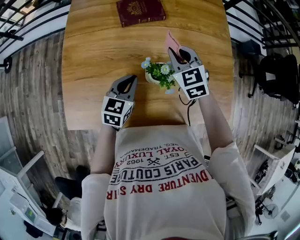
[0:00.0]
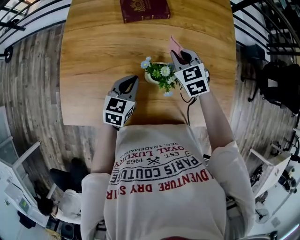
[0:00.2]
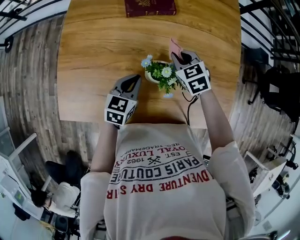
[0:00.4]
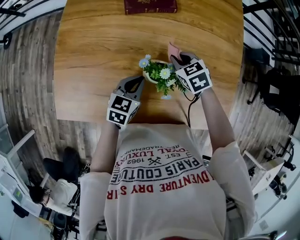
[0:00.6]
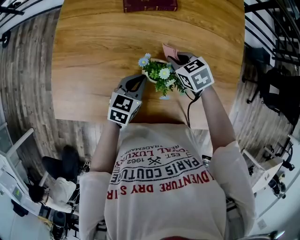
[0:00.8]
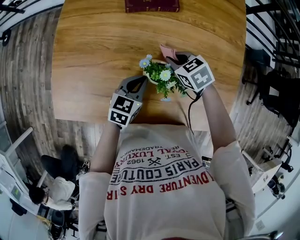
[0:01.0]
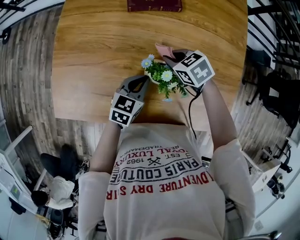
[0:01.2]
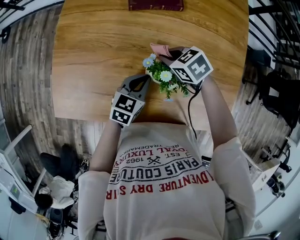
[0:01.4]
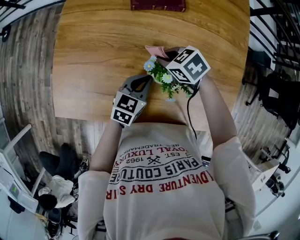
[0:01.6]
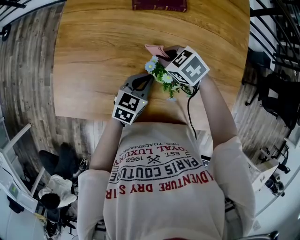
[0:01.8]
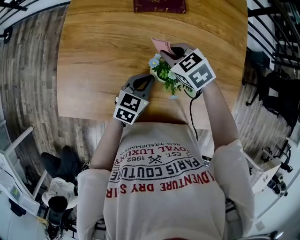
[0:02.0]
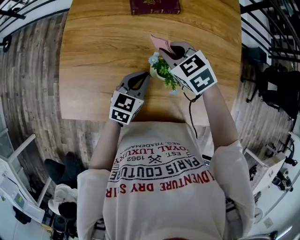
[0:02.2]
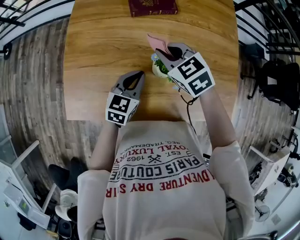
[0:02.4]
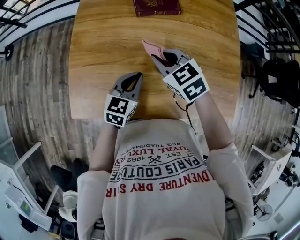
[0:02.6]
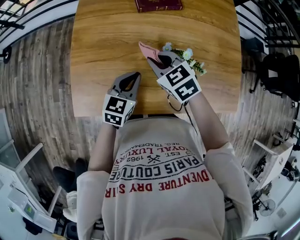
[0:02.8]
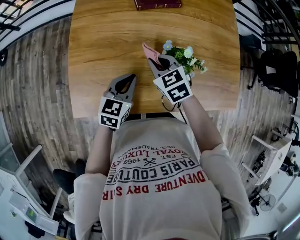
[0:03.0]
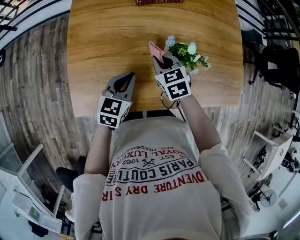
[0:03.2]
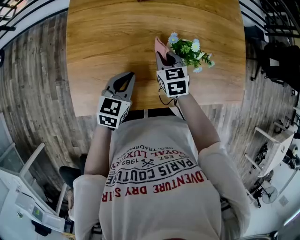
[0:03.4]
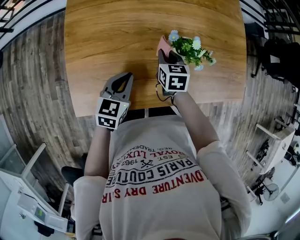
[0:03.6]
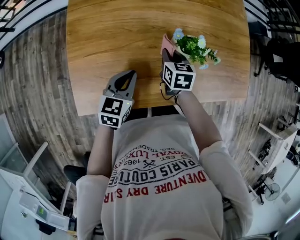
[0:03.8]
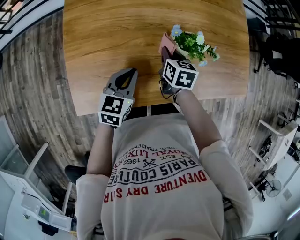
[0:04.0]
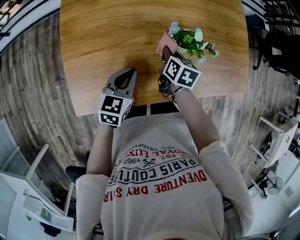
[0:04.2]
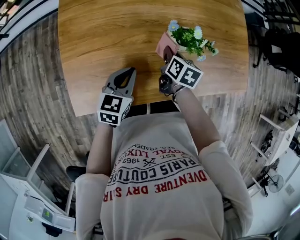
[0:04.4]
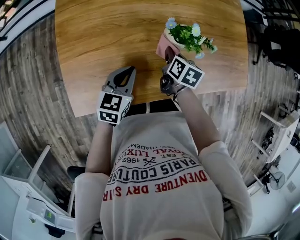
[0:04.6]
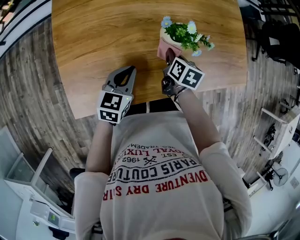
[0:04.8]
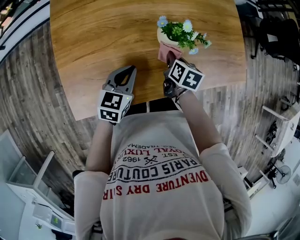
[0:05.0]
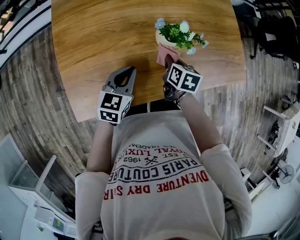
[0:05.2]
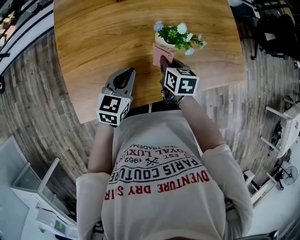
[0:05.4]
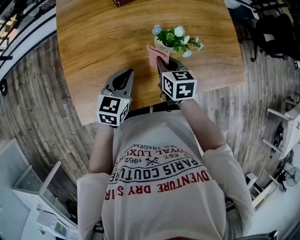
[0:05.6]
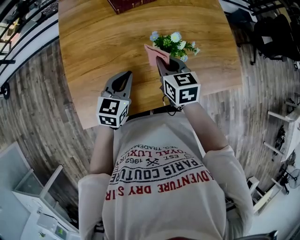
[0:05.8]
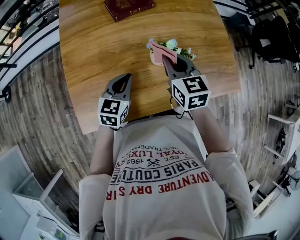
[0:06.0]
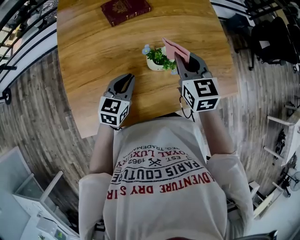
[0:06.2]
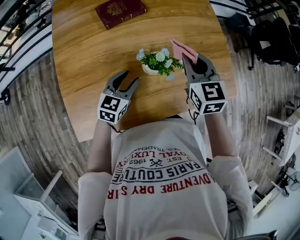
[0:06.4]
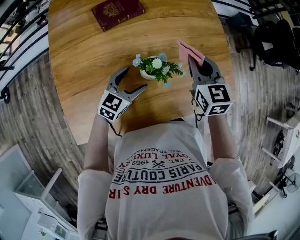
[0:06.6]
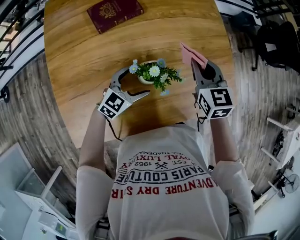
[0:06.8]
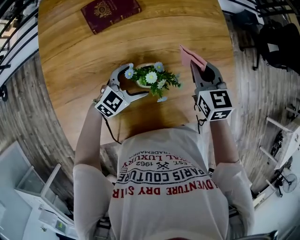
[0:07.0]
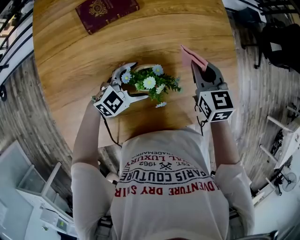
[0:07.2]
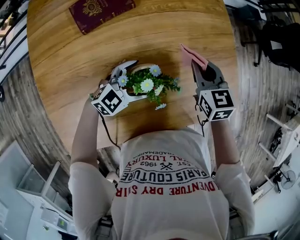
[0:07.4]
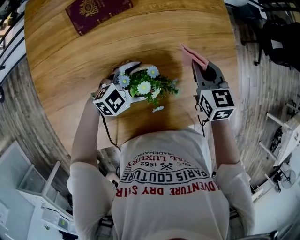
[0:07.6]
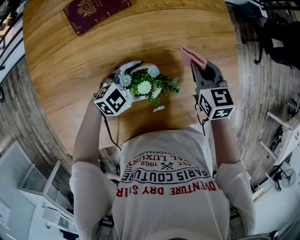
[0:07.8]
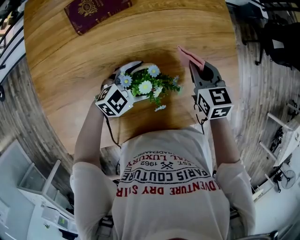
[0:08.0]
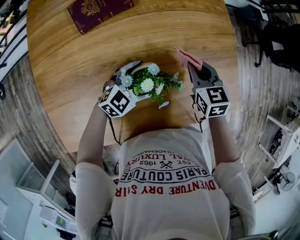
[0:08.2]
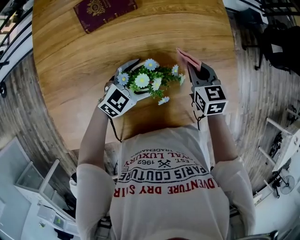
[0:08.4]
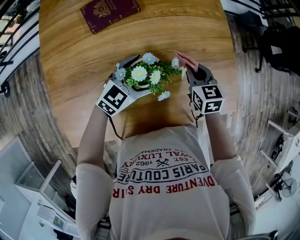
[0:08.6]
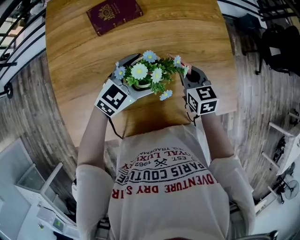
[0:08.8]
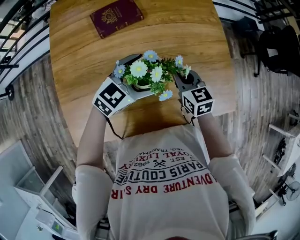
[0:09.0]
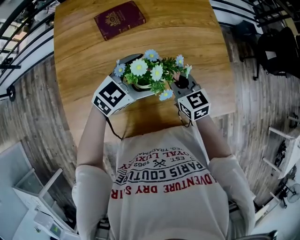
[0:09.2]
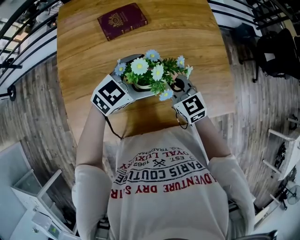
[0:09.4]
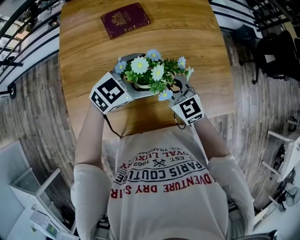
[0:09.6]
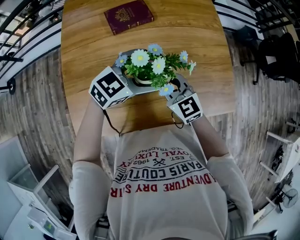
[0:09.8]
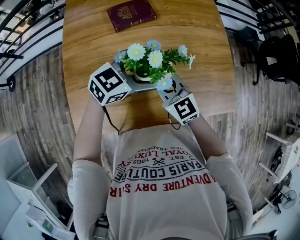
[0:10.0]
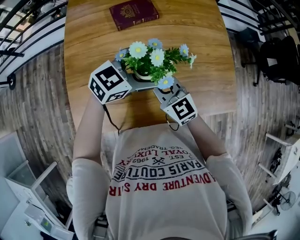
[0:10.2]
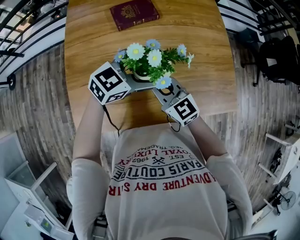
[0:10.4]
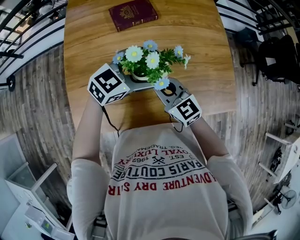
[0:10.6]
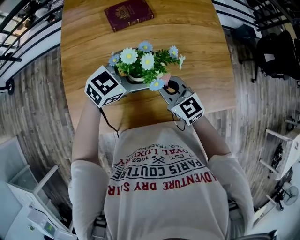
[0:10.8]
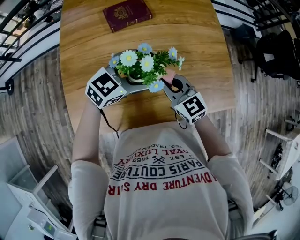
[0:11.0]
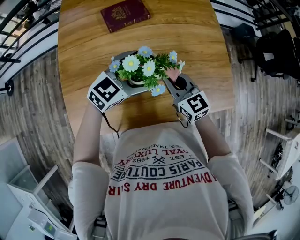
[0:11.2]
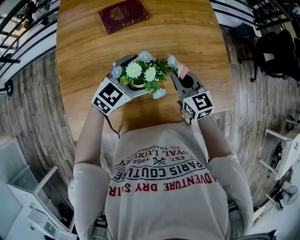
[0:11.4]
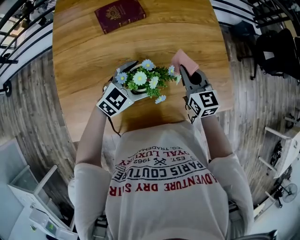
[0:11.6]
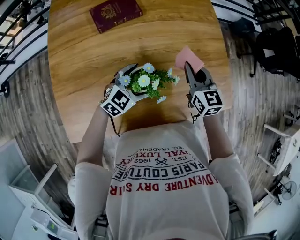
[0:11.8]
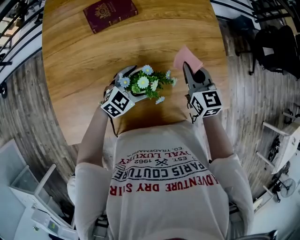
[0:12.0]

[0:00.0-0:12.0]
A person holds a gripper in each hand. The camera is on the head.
0:00.0 to 0:01.6: The right gripper moves downward, about 10 cm, and changes its angle by approximately 50 degrees, while the left gripper is displaced downward by approximately 5 cm.
0:01.6 to 0:03.0: The left gripper moves to the left, roughly 15 cm; the right gripper moves to the left, upward and backward, about 15 cm, and turns by about 30 degrees.
0:03.0 to 0:04.4: The right gripper heads downward and to the right, covering some 15 cm, and twists some 60 degrees clockwise, seen from behind.
0:04.4 to 0:06.0: The left gripper moves about 5 cm. Meanwhile the right gripper shifts about 20 cm upward, and changes its angle by roughly 40 degrees.
0:06.0 to 0:07.6: The right gripper shifts about 25 cm forward, to the right and downward. Meanwhile the left gripper travels to the right, forward and downward by roughly 20 cm, rotates roughly 50 degrees, and opens its fingers.
0:07.6 to 0:09.0: The right gripper is displaced backward and to the left by roughly 10 cm; the left gripper is displaced upward by some 15 cm.
0:09.0 to 0:10.4: The left gripper goes approximately 5 cm upward. Meanwhile the right gripper travels to the left, backward and upward by approximately 20 cm, and swivels approximately 30 degrees.
0:10.4 to 0:12.0: The right gripper is displaced to the right and forward by approximately 25 cm, and rotates about 30 degrees; the left gripper travels downward by roughly 15 cm.

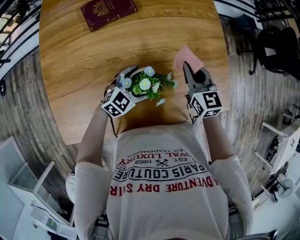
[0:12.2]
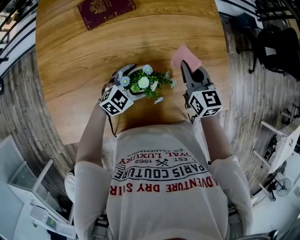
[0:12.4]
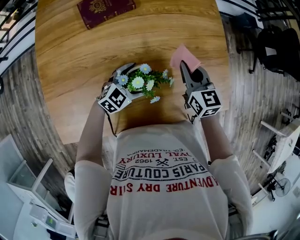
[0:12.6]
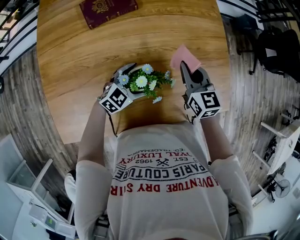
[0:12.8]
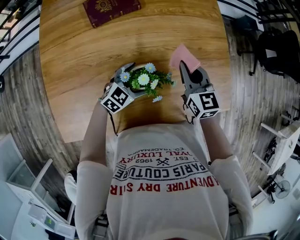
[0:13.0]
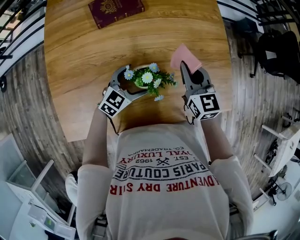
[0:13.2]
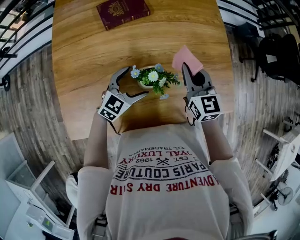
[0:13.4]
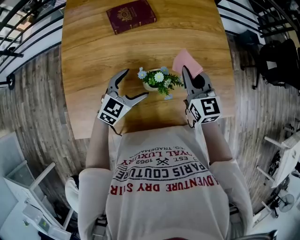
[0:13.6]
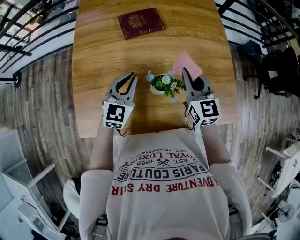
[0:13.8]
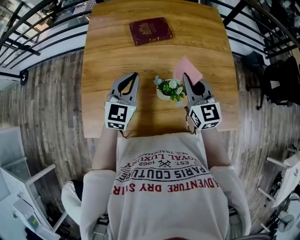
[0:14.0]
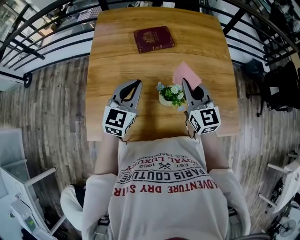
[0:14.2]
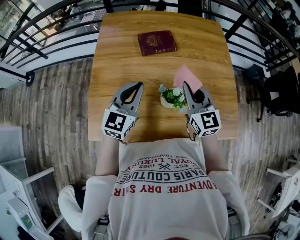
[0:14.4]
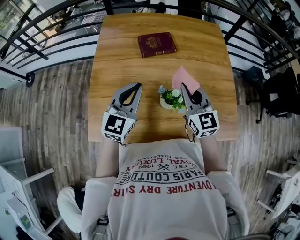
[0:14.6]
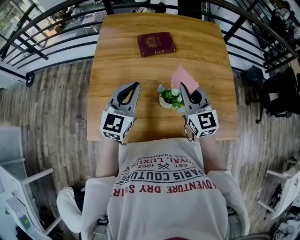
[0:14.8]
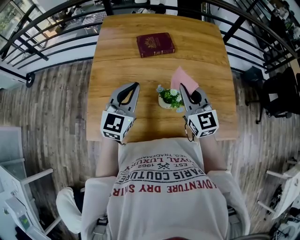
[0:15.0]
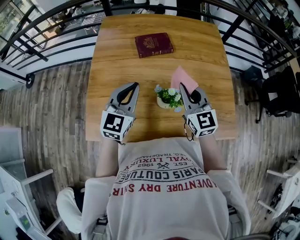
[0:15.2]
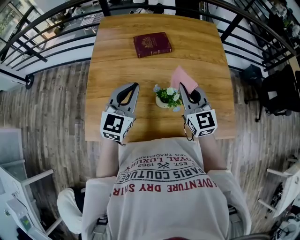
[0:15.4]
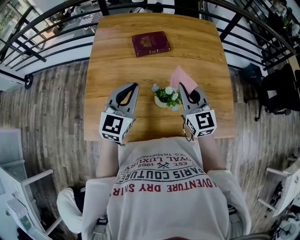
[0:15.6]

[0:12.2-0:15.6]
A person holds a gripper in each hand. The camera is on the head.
0:12.2 to 0:13.8: The right gripper heads to the left, upward and backward, covering roughly 15 cm; the left gripper shifts some 20 cm to the left and upward, swivels about 40 degrees, and closes.
0:13.8 to 0:15.6: The right gripper is displaced upward by roughly 5 cm, while the left gripper travels upward by about 10 cm.

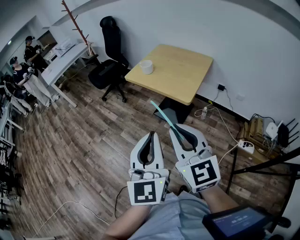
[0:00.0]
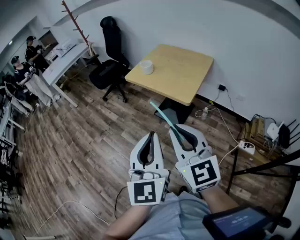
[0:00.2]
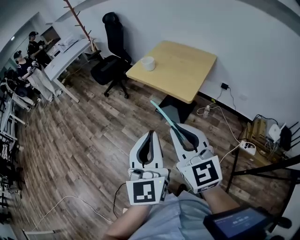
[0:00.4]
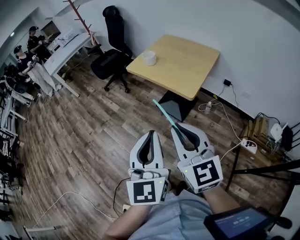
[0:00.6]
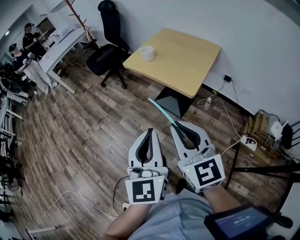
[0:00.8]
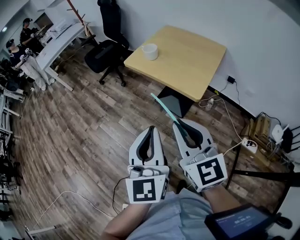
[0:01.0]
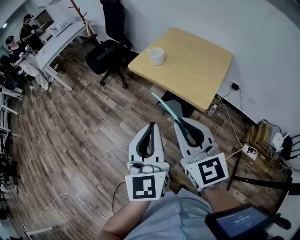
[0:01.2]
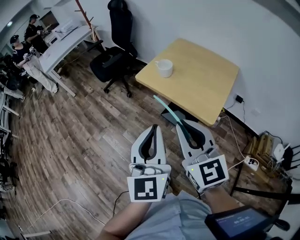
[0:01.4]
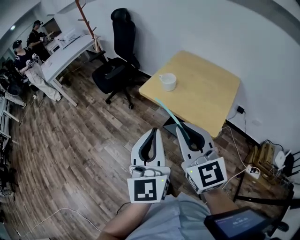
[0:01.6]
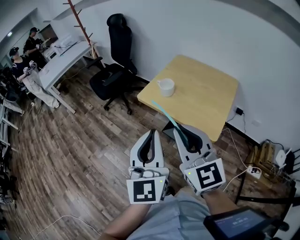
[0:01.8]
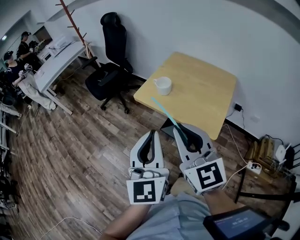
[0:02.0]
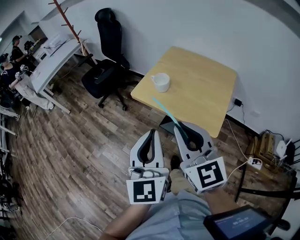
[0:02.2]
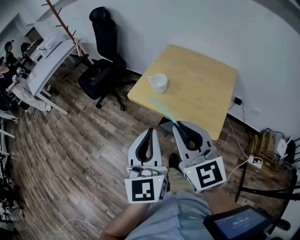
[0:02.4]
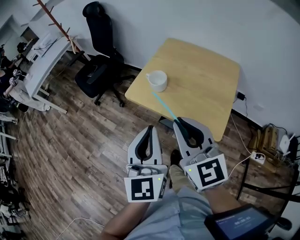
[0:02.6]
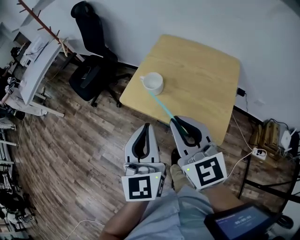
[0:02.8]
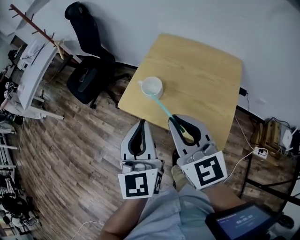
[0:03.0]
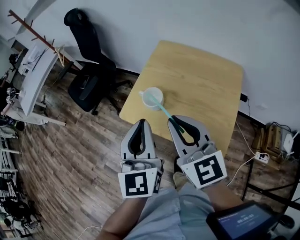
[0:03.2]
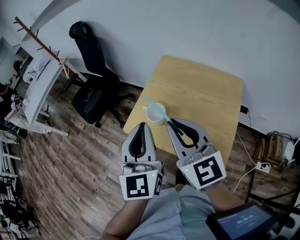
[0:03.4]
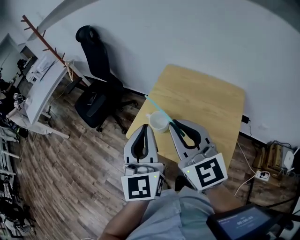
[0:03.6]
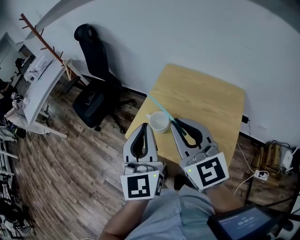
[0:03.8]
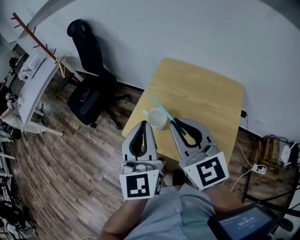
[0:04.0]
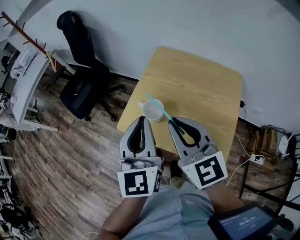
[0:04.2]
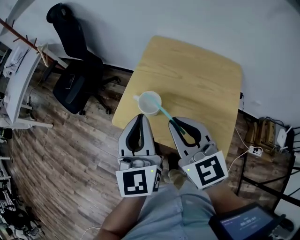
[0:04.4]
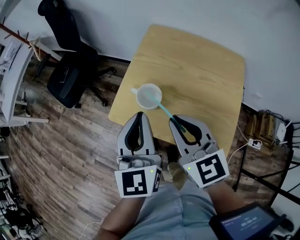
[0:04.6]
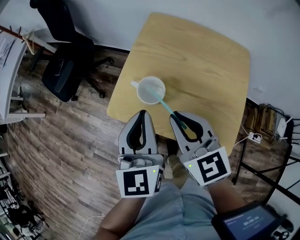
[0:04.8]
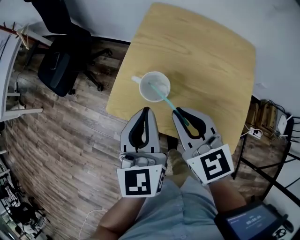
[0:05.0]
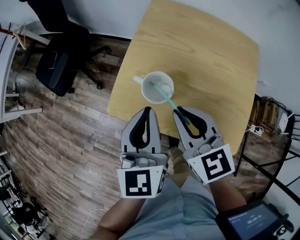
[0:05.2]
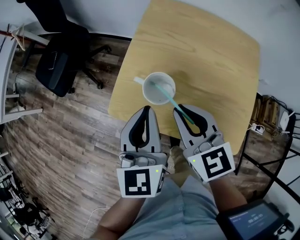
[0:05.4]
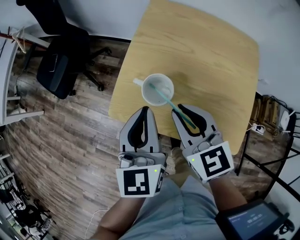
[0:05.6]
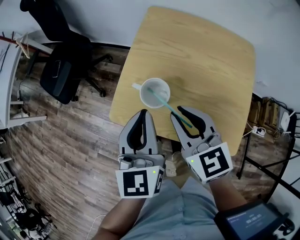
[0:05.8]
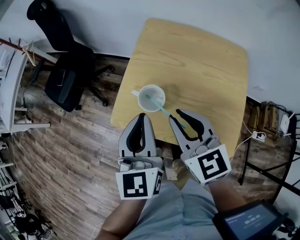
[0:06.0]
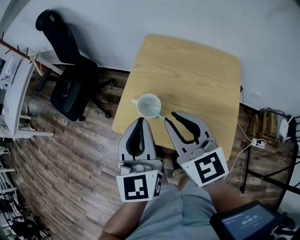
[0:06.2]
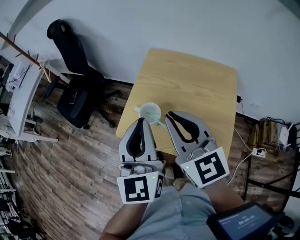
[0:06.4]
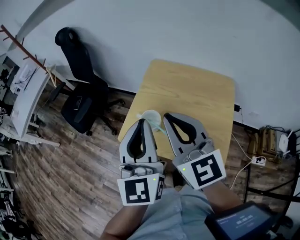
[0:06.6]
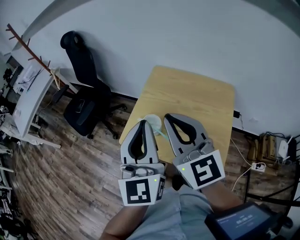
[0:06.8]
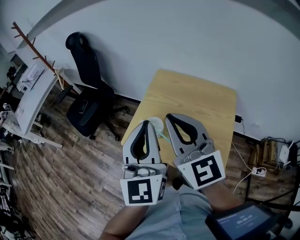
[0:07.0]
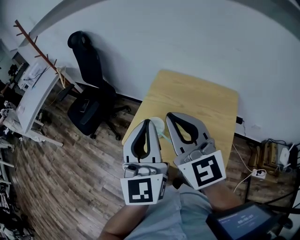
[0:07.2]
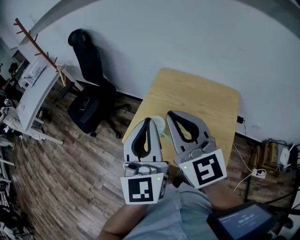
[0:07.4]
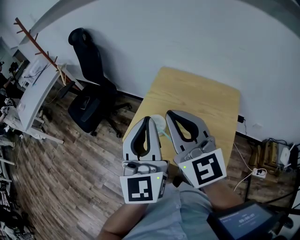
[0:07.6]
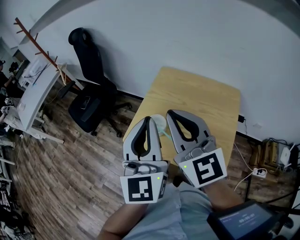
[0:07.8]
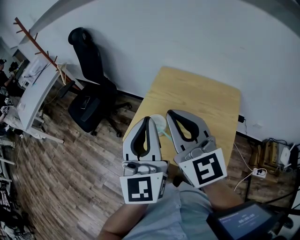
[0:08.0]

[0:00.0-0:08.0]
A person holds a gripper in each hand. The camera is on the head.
0:00.0 to 0:01.6: Both grippers travel together forward, roughly 30 cm.
0:01.6 to 0:03.2: The grippers both shift forward by about 30 cm.
0:03.2 to 0:04.8: The right gripper moves downward and forward, roughly 15 cm, while the left gripper goes some 15 cm forward and downward.
0:04.8 to 0:06.4: Both grippers move upward, approximately 10 cm.
0:06.4 to 0:08.0: The two grippers go about 5 cm upward.
